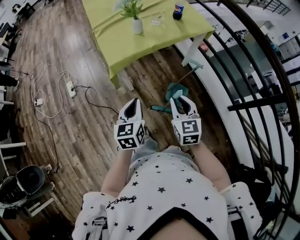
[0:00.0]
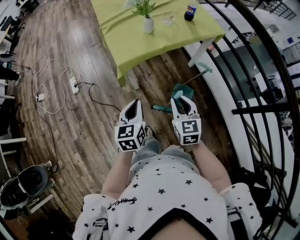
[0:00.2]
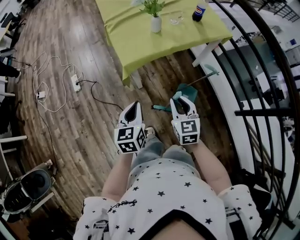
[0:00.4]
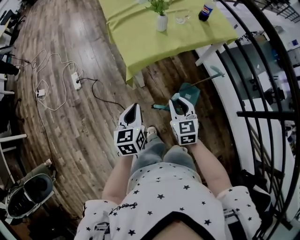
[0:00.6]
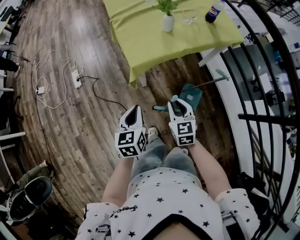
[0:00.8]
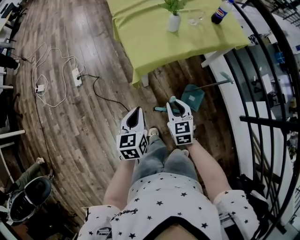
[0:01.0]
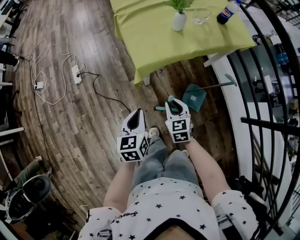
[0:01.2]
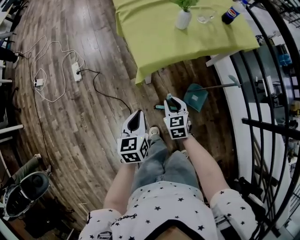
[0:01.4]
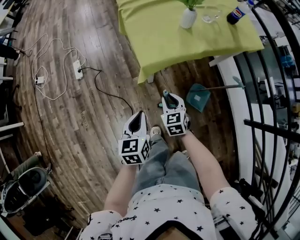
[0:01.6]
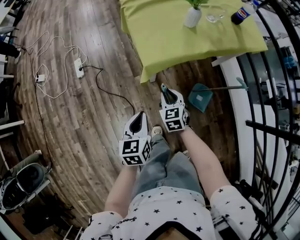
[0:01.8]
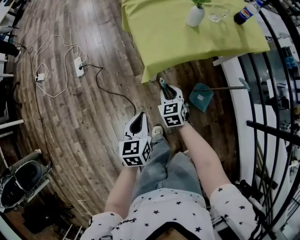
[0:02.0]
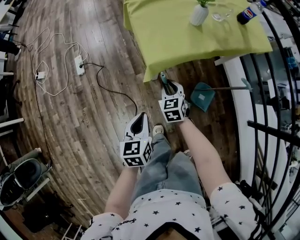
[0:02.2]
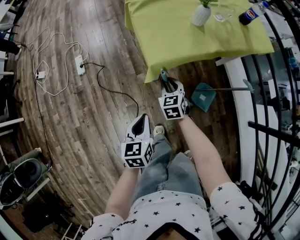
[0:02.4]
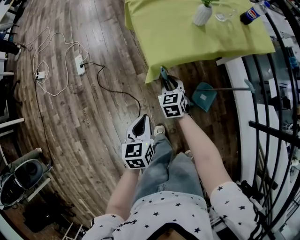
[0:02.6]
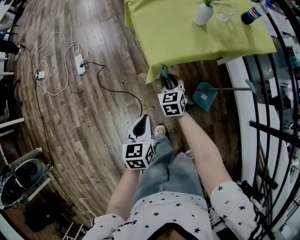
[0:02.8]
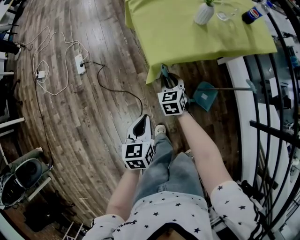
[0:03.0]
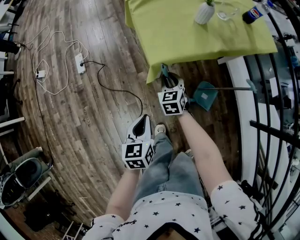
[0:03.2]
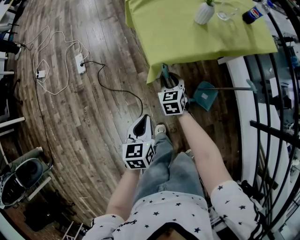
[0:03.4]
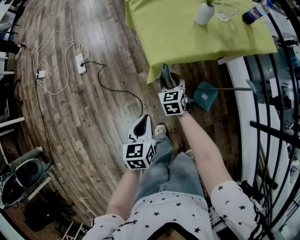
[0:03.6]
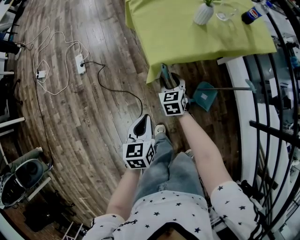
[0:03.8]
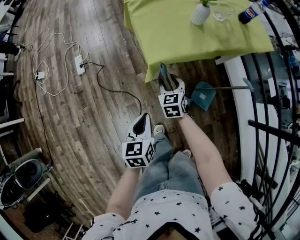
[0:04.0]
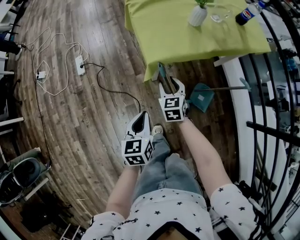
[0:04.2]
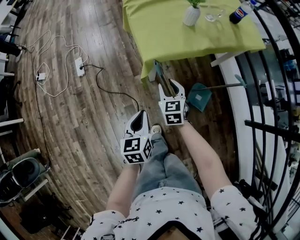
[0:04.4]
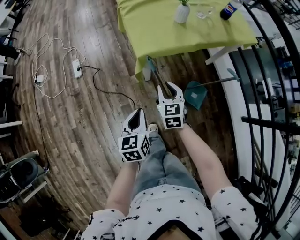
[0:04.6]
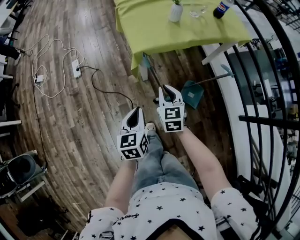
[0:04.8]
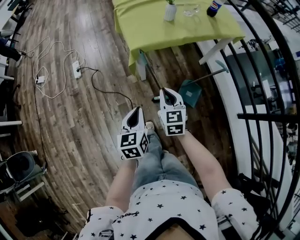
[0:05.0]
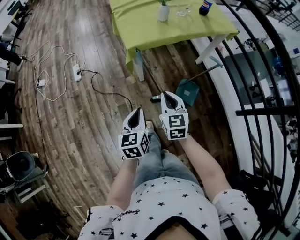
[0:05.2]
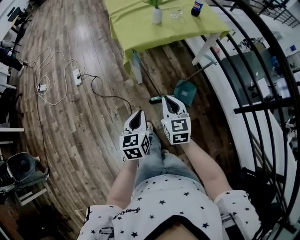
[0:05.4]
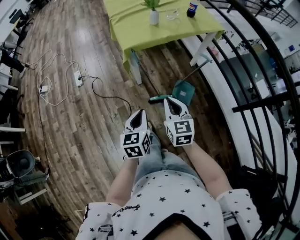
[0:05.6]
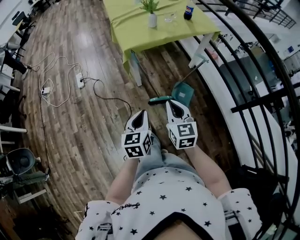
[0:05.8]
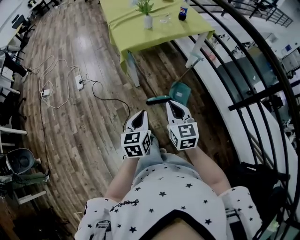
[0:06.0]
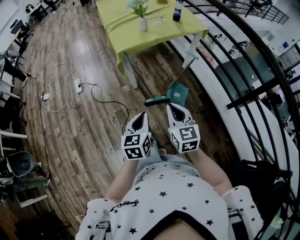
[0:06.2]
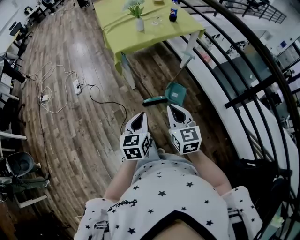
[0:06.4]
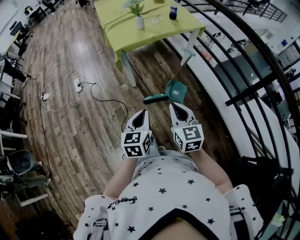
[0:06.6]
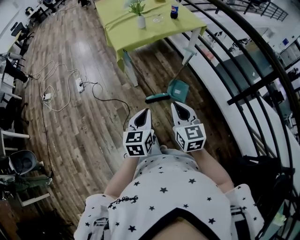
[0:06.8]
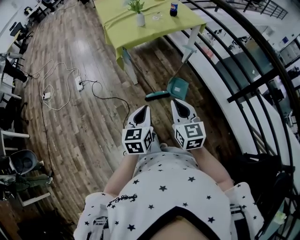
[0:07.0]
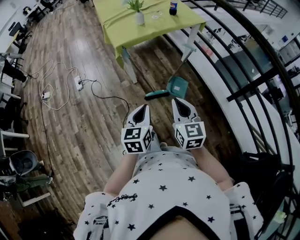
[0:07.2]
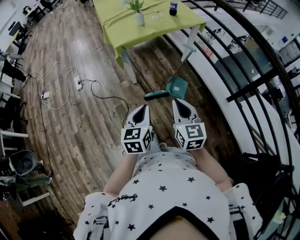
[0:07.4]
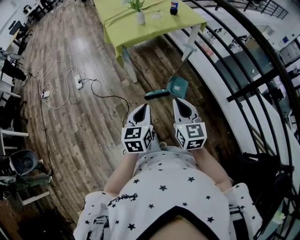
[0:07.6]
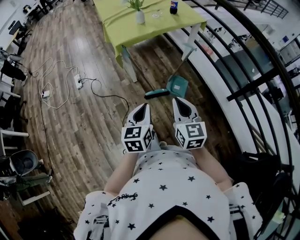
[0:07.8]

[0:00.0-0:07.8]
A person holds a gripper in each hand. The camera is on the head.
0:00.0 to 0:01.6: The left gripper goes roughly 20 cm to the left, downward and forward. The right gripper travels downward, to the left and forward by some 35 cm, and changes its angle by approximately 20 degrees.
0:01.6 to 0:03.2: The right gripper shifts approximately 10 cm forward.
0:03.2 to 0:04.6: The right gripper is displaced backward and upward by roughly 15 cm, and opens and closes again, while the left gripper moves roughly 5 cm.
0:04.6 to 0:06.2: The grippers both shift backward, upward and to the right by some 40 cm. The right gripper closes.
0:06.2 to 0:07.8: The grippers stay close to where they were, moving slightly.

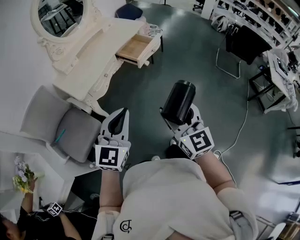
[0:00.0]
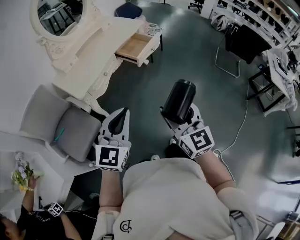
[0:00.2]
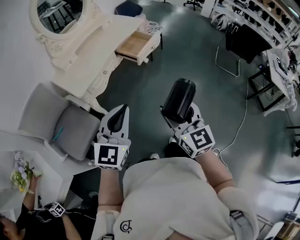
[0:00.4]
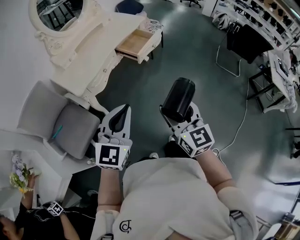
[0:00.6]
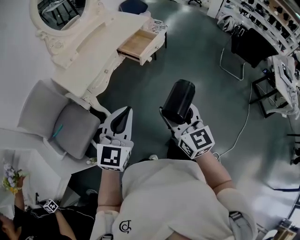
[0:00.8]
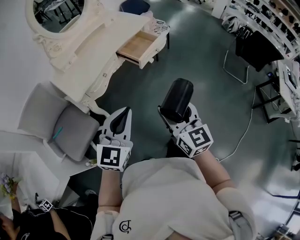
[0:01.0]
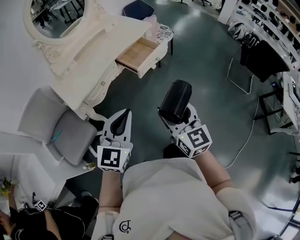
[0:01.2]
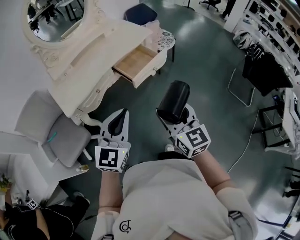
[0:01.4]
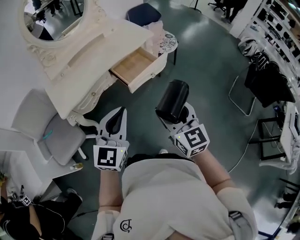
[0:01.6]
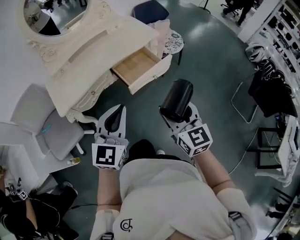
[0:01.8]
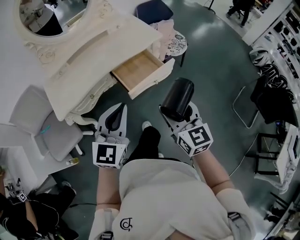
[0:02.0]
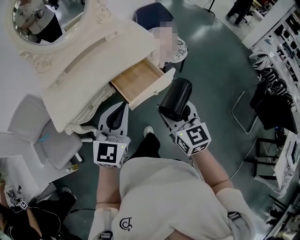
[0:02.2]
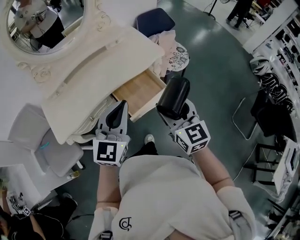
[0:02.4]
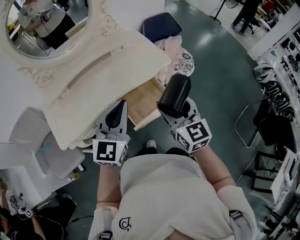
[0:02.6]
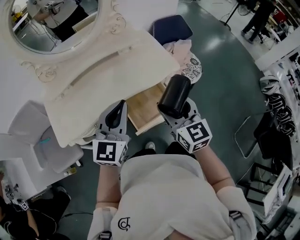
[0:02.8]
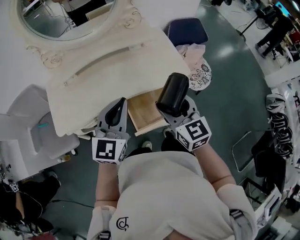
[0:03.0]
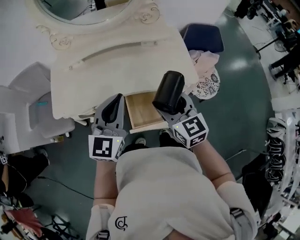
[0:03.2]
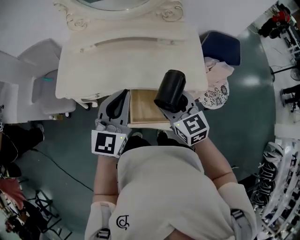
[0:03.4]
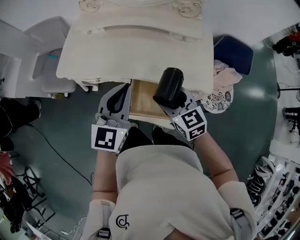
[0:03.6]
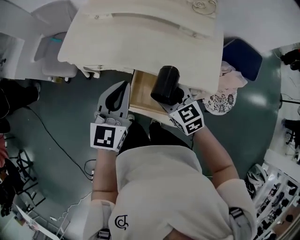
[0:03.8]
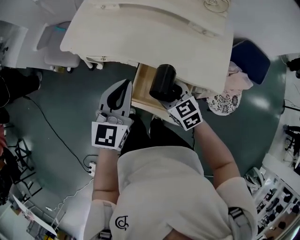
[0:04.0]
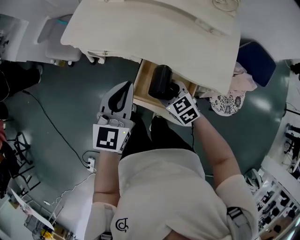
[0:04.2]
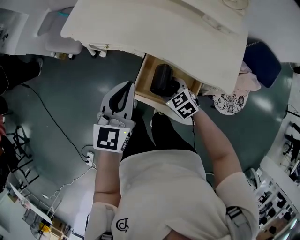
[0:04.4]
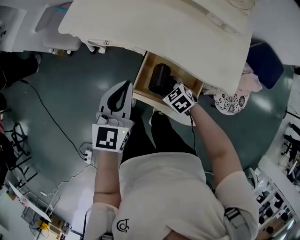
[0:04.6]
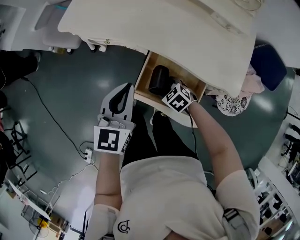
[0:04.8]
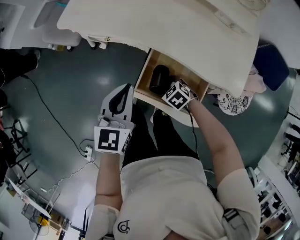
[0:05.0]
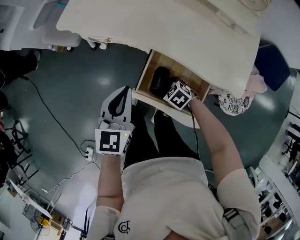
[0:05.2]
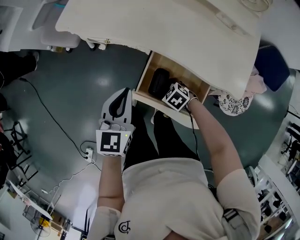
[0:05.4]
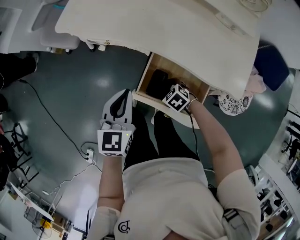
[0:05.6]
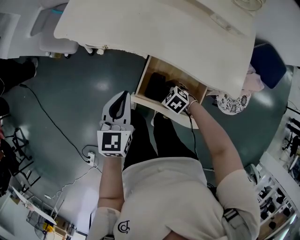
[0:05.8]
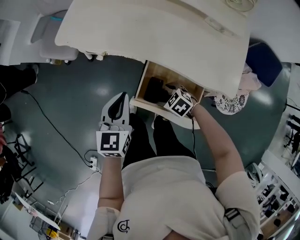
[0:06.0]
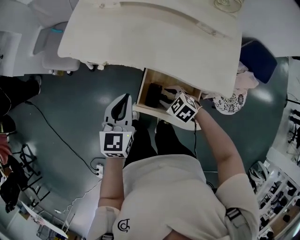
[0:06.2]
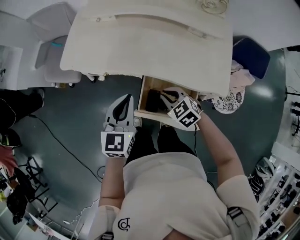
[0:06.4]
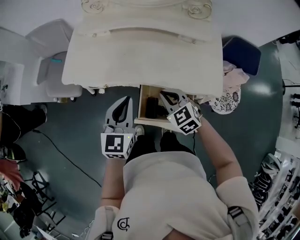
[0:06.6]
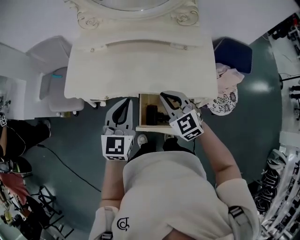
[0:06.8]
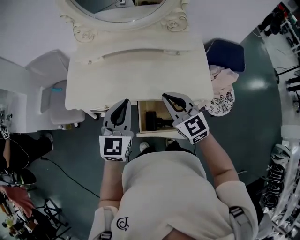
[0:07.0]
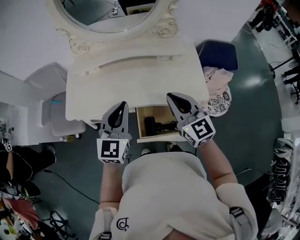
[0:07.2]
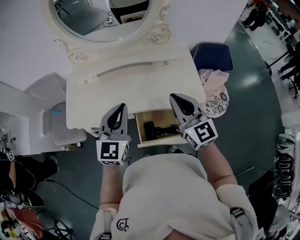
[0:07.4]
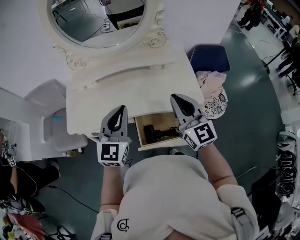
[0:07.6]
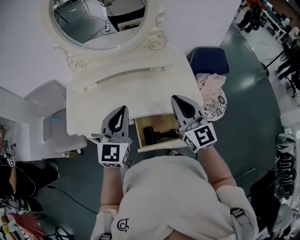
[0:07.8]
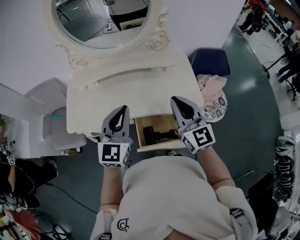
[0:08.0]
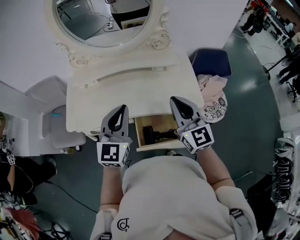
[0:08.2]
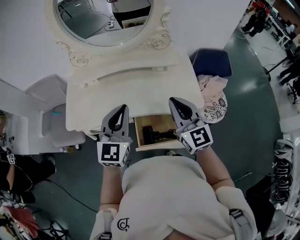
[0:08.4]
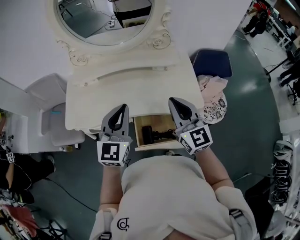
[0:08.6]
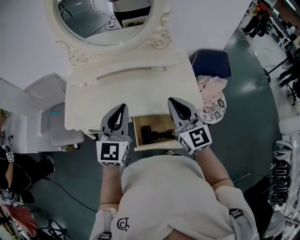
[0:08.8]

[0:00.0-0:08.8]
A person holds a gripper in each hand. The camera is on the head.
0:00.0 to 0:01.4: The grippers both shift forward and to the right by approximately 25 cm.
0:01.4 to 0:03.0: Both grippers are carried about 40 cm. The left gripper rotates approximately 30 degrees. Meanwhile the right gripper turns by some 30 degrees.
0:03.0 to 0:04.4: The left gripper is displaced downward by some 10 cm, and rotates approximately 40 degrees; the right gripper heads downward, covering approximately 30 cm, and angles its fingers downward, by roughly 40 degrees.
0:04.4 to 0:05.8: The two grippers go approximately 10 cm downward. The right gripper rotates about 20 degrees.
0:05.8 to 0:07.4: The left gripper heads upward, covering some 20 cm, and turns by about 40 degrees. The right gripper heads upward, covering roughly 50 cm, tips its fingers upward by about 70 degrees, and closes its fingers.
0:07.4 to 0:08.8: The grippers stay close to where they were, moving slightly.

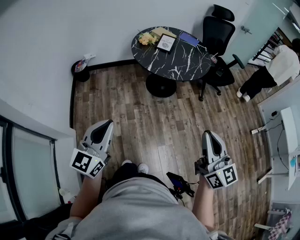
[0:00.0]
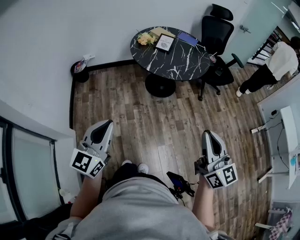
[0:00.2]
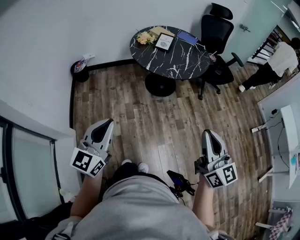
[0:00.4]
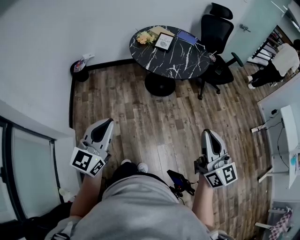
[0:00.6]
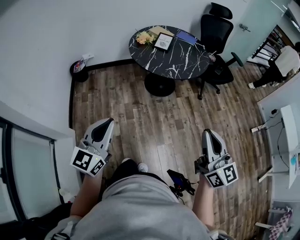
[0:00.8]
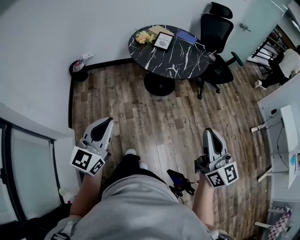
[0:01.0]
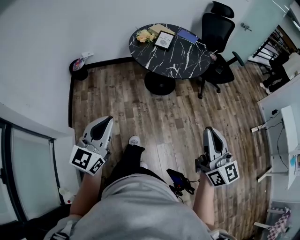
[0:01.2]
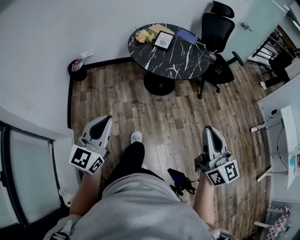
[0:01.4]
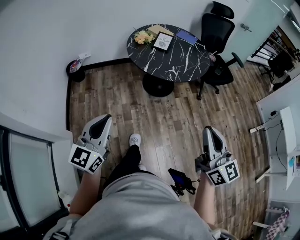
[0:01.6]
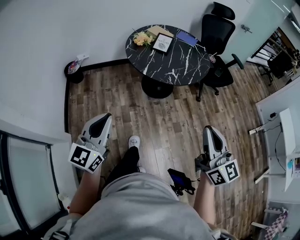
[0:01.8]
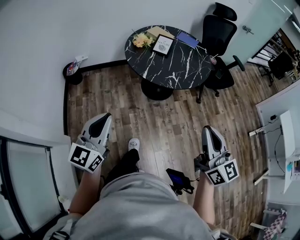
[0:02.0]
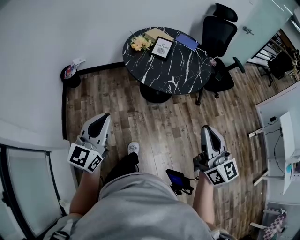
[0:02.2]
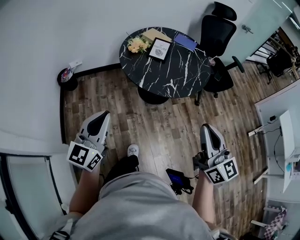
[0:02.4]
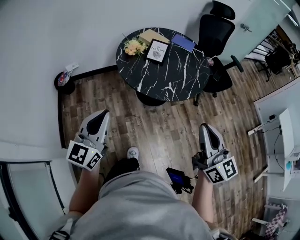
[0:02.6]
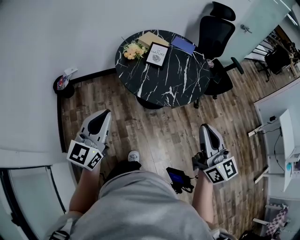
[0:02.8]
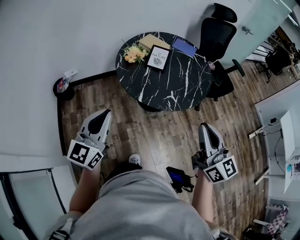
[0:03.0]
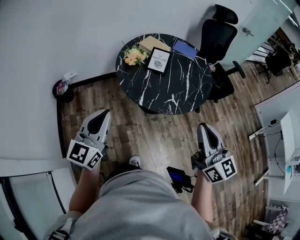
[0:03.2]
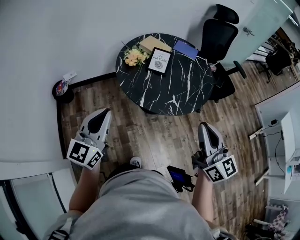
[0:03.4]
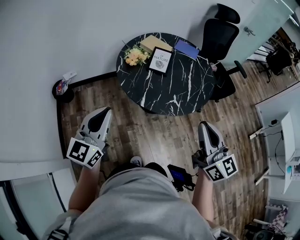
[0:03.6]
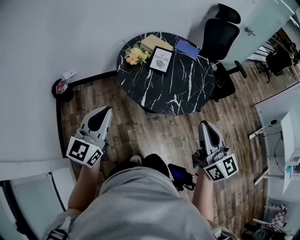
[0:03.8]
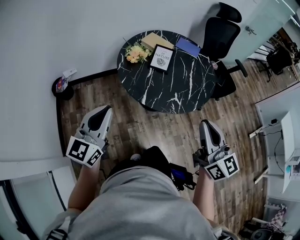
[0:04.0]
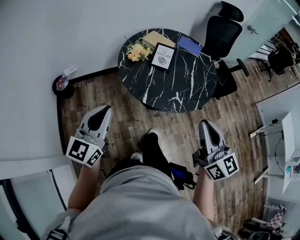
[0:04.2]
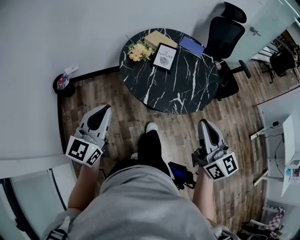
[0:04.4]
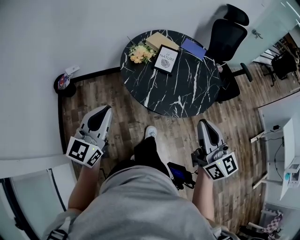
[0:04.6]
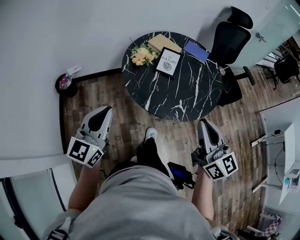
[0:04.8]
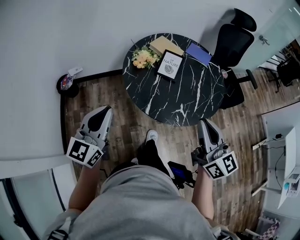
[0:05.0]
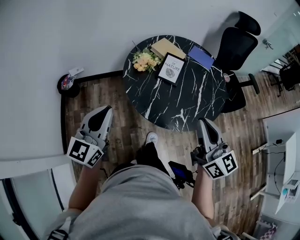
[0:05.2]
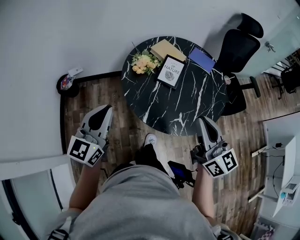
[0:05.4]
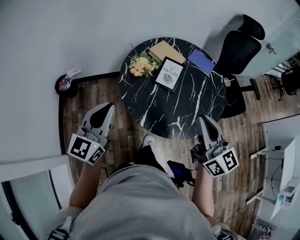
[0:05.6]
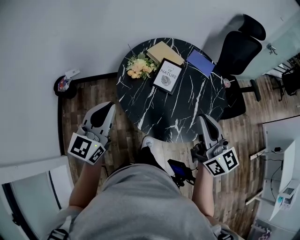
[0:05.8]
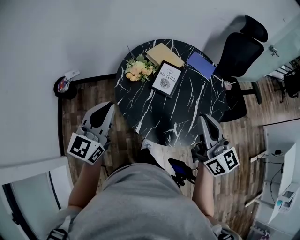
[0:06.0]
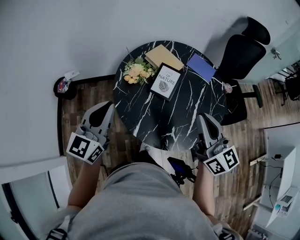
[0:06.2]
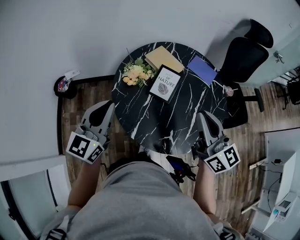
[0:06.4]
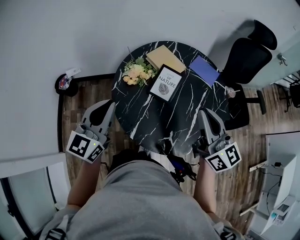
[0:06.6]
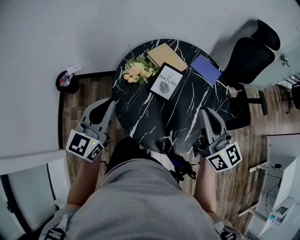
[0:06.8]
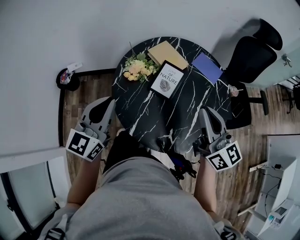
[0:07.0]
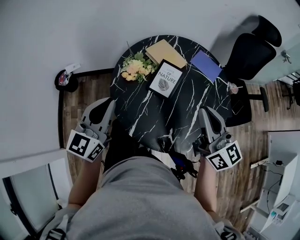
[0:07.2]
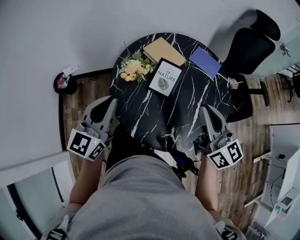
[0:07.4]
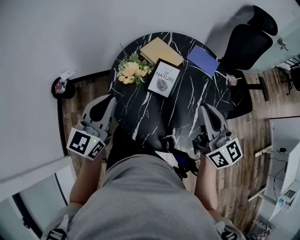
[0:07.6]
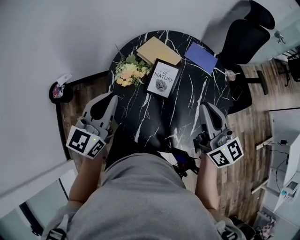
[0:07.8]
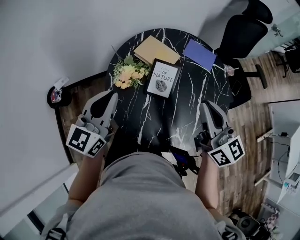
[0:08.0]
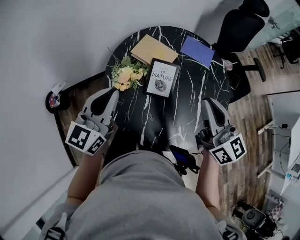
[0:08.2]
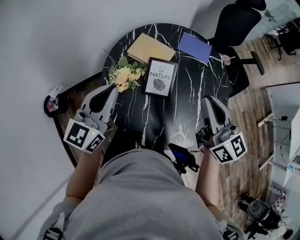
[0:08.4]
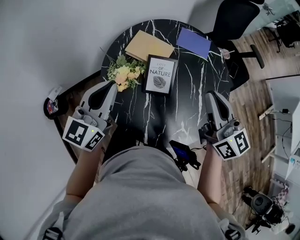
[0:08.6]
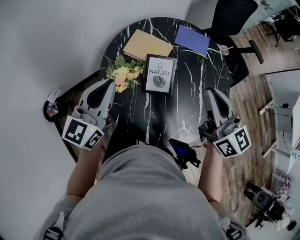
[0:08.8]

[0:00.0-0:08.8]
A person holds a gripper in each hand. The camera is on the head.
0:00.0 to 0:01.4: The grippers stay close to where they were, moving slightly.
0:01.4 to 0:03.0: The grippers both shift forward by roughly 30 cm.
0:03.0 to 0:04.4: The grippers both shift forward by about 5 cm.
0:04.4 to 0:05.8: Both grippers travel together forward, roughly 20 cm.
0:05.8 to 0:07.4: The grippers both shift forward and to the right by approximately 10 cm.
0:07.4 to 0:08.8: The right gripper is displaced forward by about 10 cm, and turns by roughly 20 degrees; the left gripper heads forward, covering approximately 15 cm, and turns by some 20 degrees.
